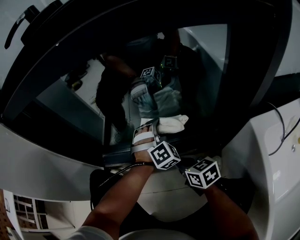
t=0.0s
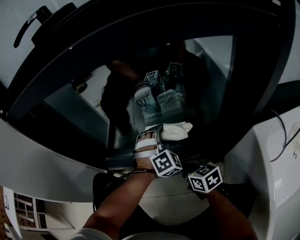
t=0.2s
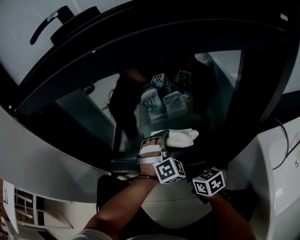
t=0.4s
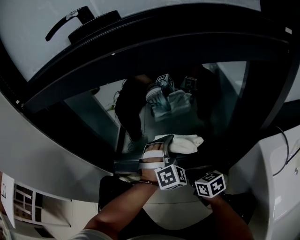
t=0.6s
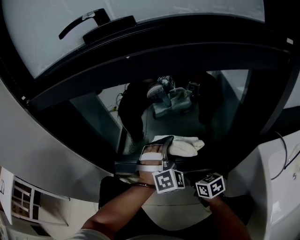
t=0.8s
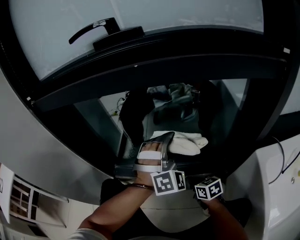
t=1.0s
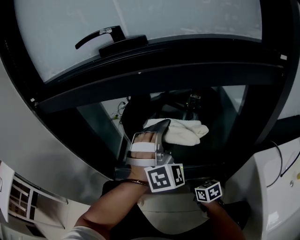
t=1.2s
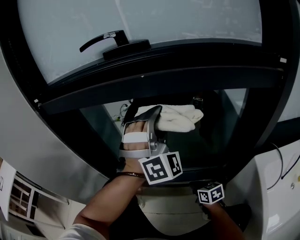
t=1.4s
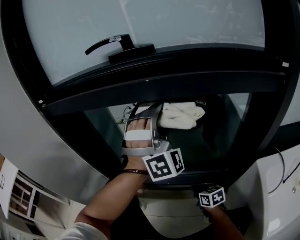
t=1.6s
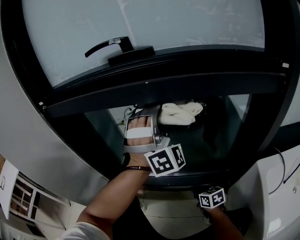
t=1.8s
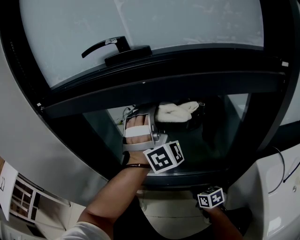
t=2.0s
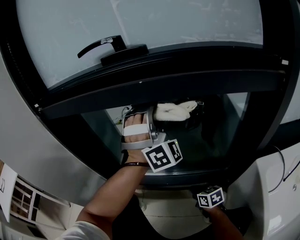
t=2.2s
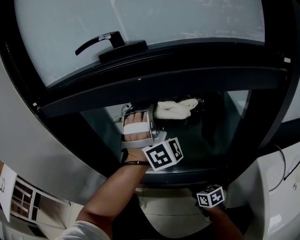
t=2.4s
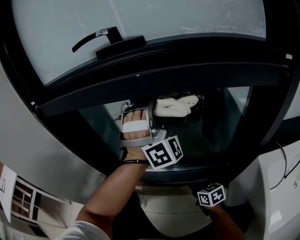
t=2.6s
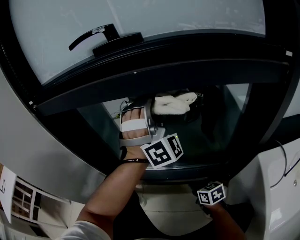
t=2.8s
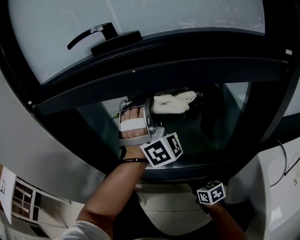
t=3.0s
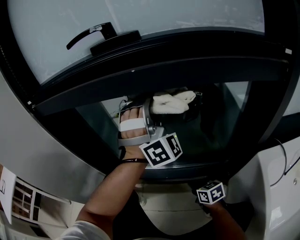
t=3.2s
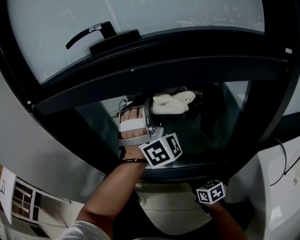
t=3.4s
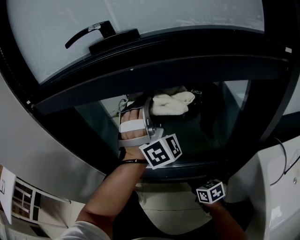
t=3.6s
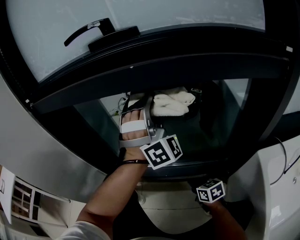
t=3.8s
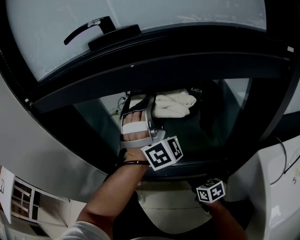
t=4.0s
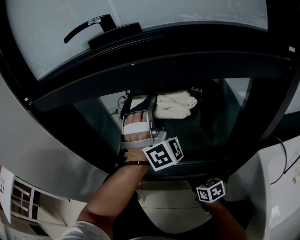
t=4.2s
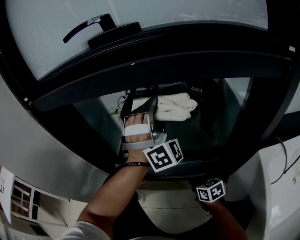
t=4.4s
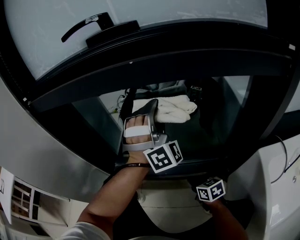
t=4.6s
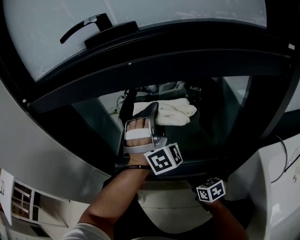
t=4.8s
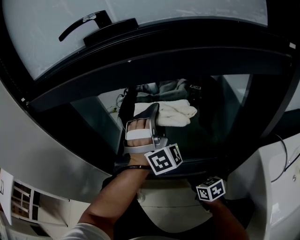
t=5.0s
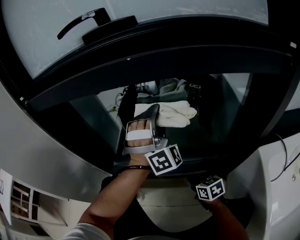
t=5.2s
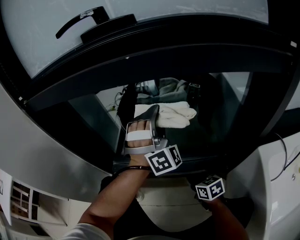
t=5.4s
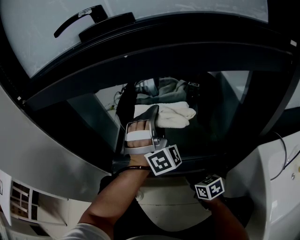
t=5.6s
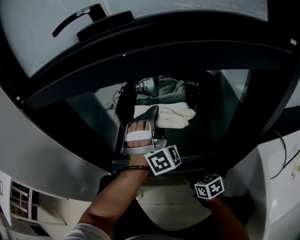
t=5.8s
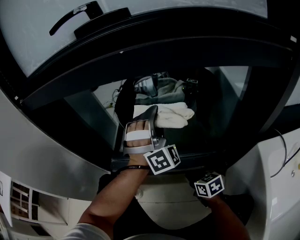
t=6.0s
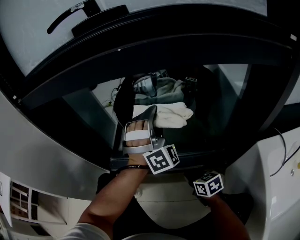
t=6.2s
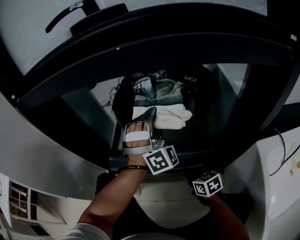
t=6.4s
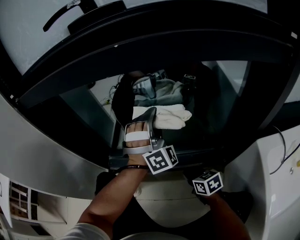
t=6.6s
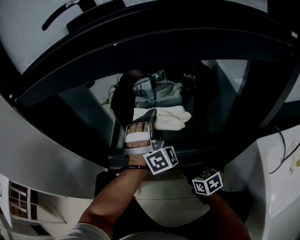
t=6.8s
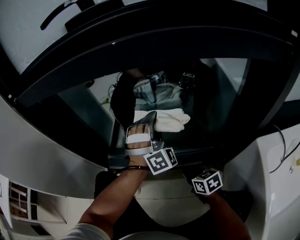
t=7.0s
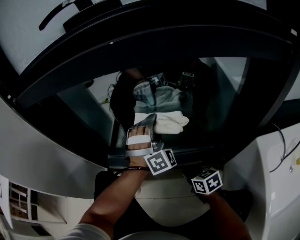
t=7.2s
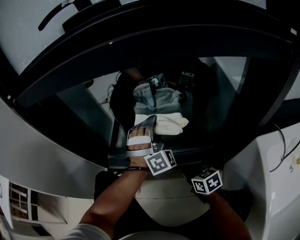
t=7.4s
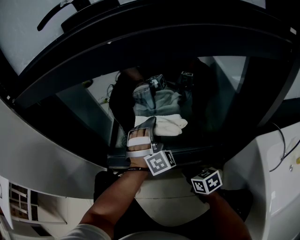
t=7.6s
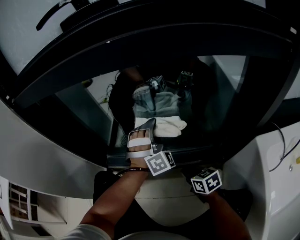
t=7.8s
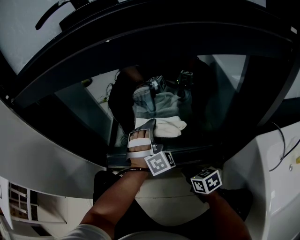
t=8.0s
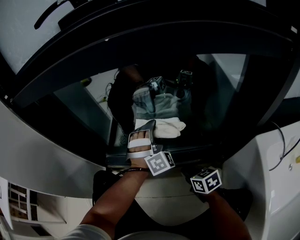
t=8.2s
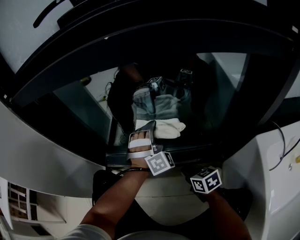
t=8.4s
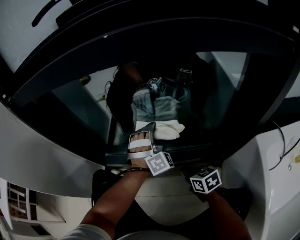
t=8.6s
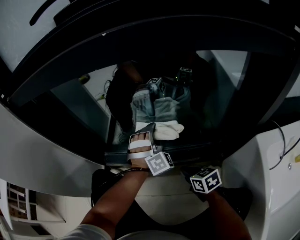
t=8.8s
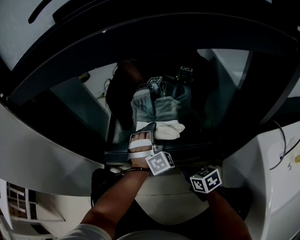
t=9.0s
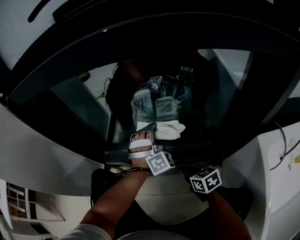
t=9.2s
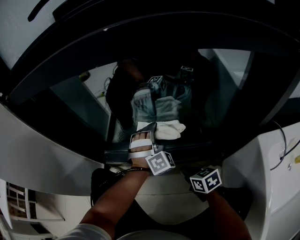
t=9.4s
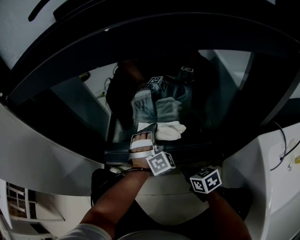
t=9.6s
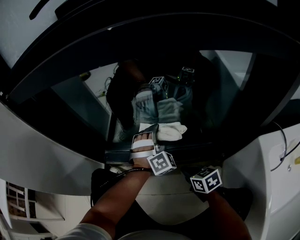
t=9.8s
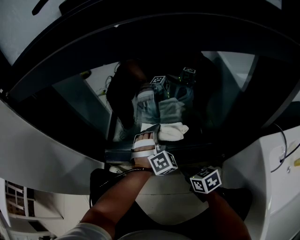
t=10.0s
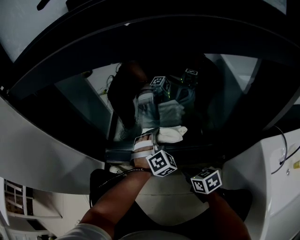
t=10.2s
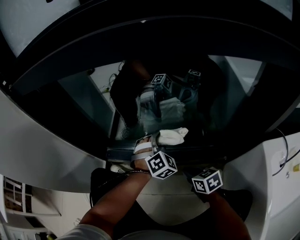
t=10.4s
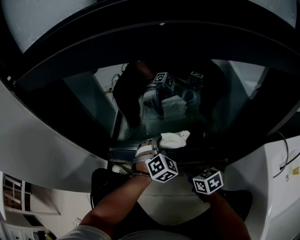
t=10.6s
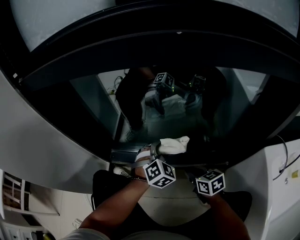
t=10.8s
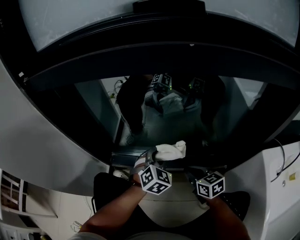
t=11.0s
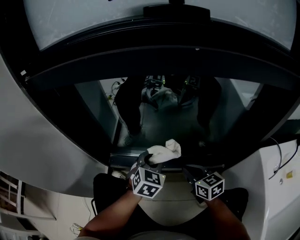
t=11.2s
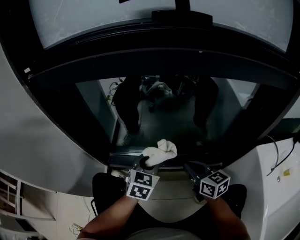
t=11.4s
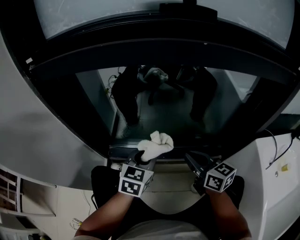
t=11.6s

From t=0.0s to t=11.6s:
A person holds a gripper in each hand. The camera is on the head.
From t=10.2s to t=11.6s: The right gripper moves upward, some 20 cm, and changes its angle by some 30 degrees.

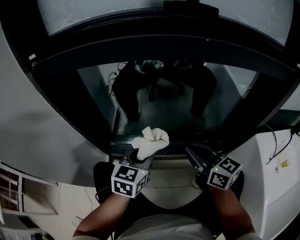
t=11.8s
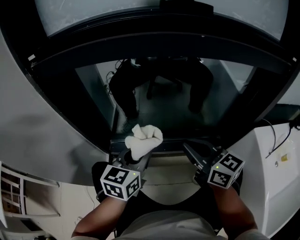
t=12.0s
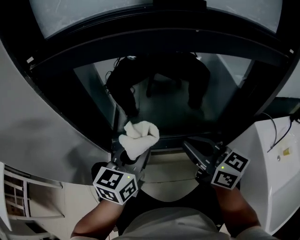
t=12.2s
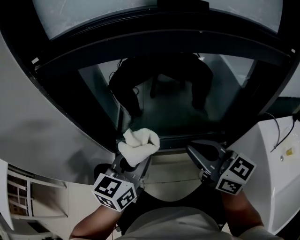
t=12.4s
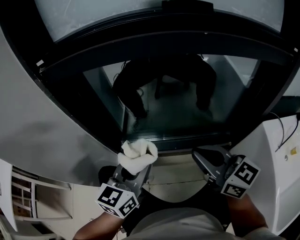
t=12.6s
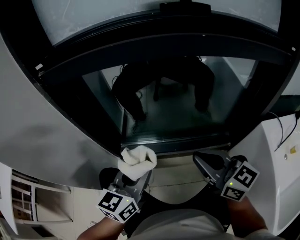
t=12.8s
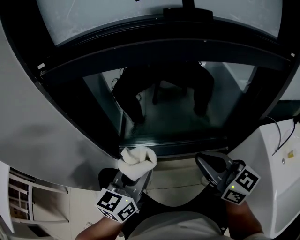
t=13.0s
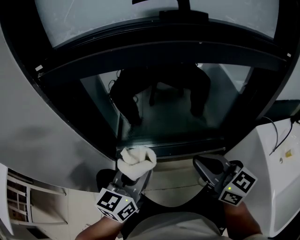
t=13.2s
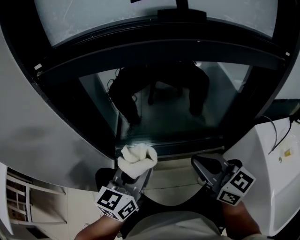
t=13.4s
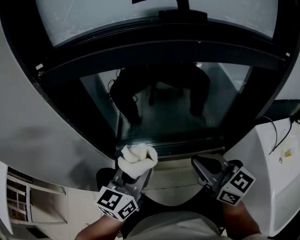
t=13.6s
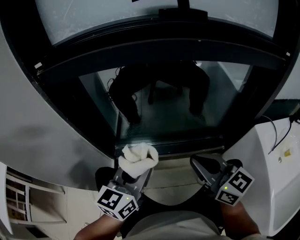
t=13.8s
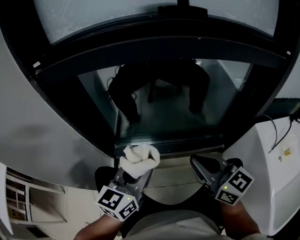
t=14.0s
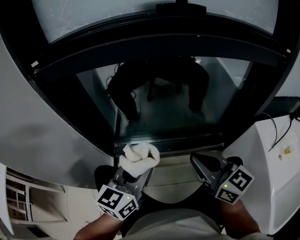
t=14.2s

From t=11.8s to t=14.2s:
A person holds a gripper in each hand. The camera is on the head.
From t=11.8s to t=13.0s: The right gripper changes place by about 10 cm.

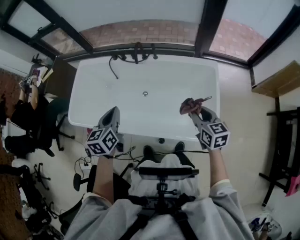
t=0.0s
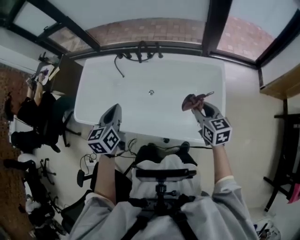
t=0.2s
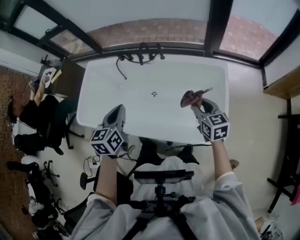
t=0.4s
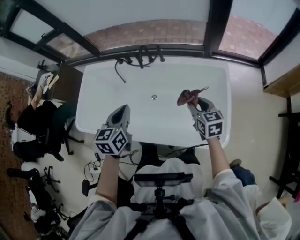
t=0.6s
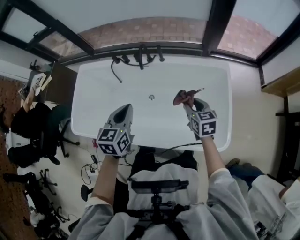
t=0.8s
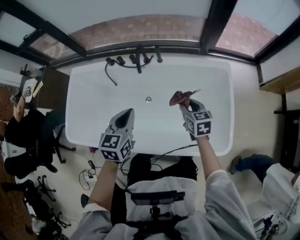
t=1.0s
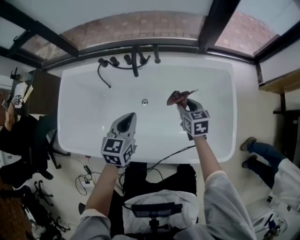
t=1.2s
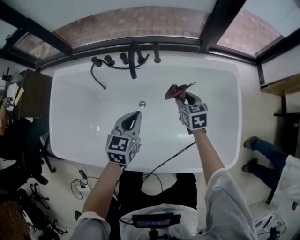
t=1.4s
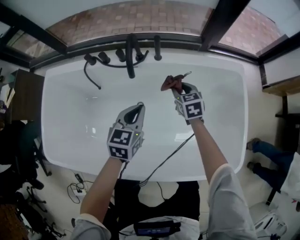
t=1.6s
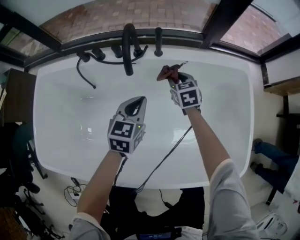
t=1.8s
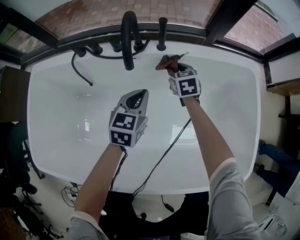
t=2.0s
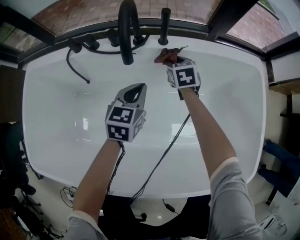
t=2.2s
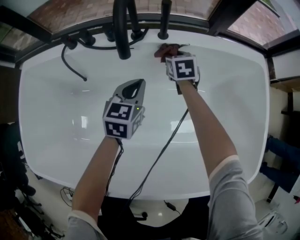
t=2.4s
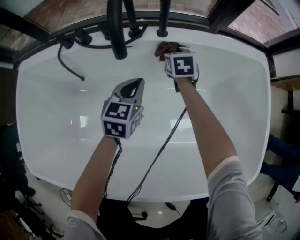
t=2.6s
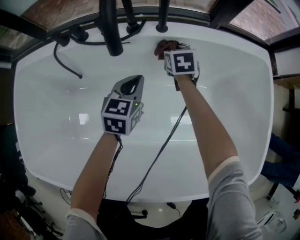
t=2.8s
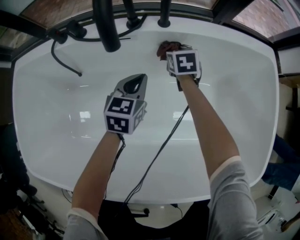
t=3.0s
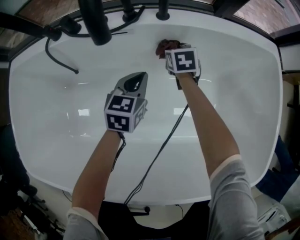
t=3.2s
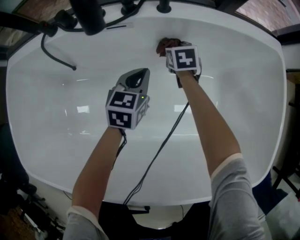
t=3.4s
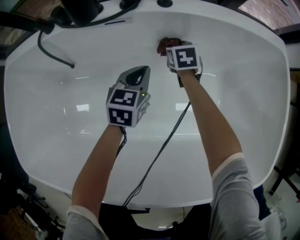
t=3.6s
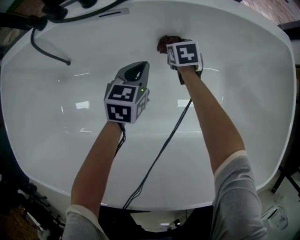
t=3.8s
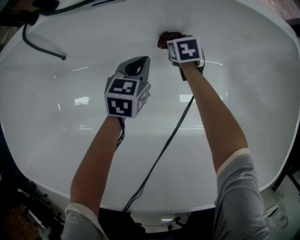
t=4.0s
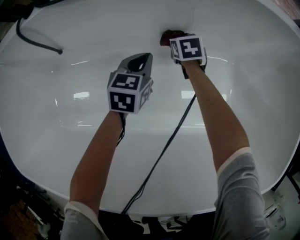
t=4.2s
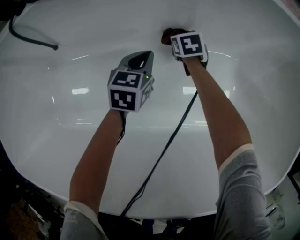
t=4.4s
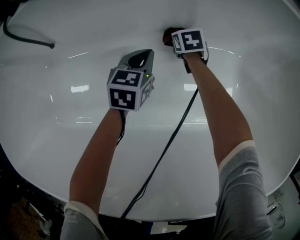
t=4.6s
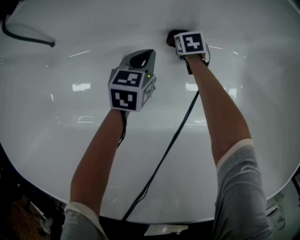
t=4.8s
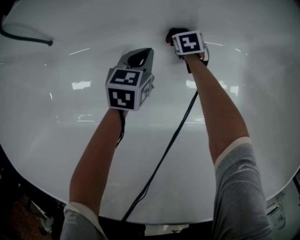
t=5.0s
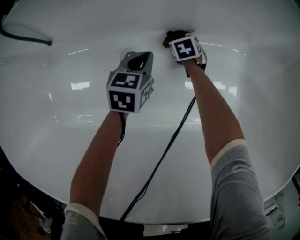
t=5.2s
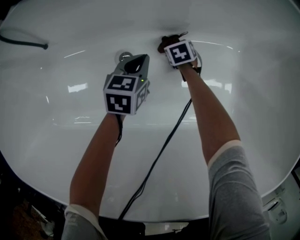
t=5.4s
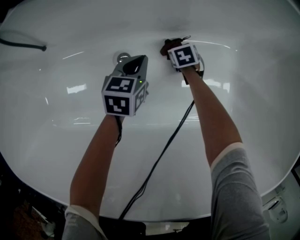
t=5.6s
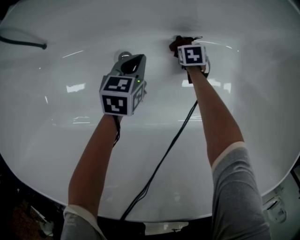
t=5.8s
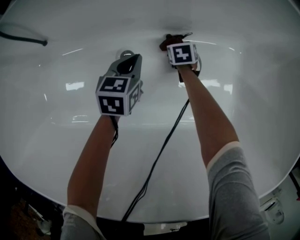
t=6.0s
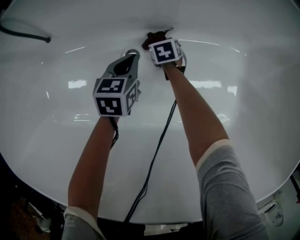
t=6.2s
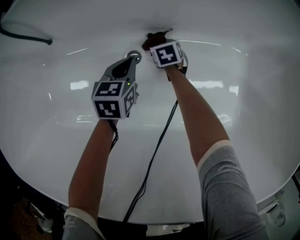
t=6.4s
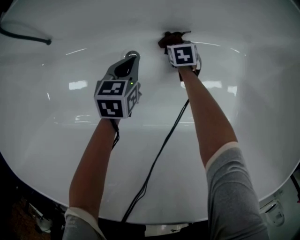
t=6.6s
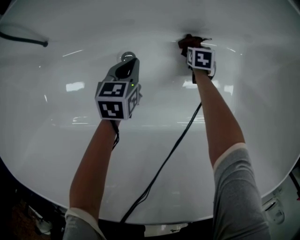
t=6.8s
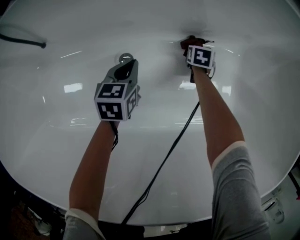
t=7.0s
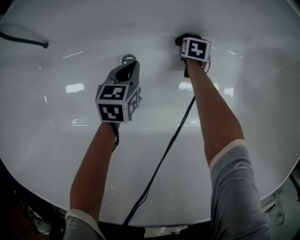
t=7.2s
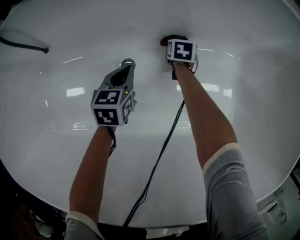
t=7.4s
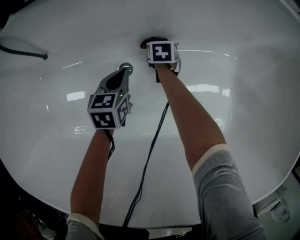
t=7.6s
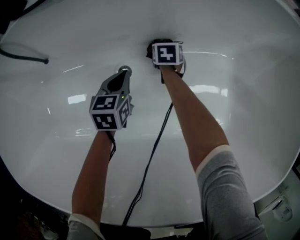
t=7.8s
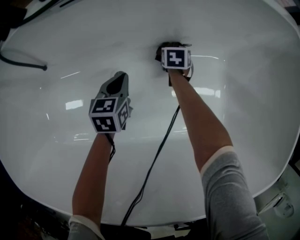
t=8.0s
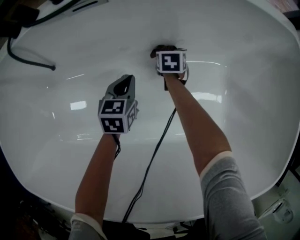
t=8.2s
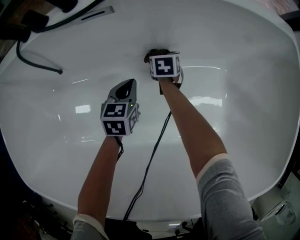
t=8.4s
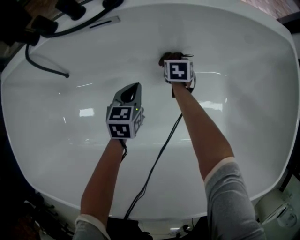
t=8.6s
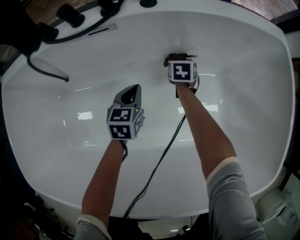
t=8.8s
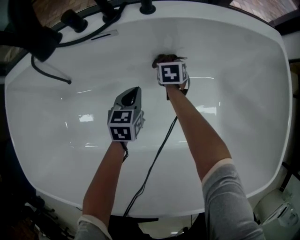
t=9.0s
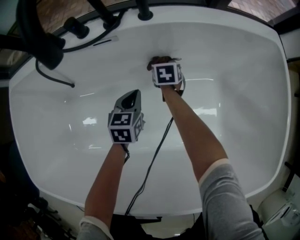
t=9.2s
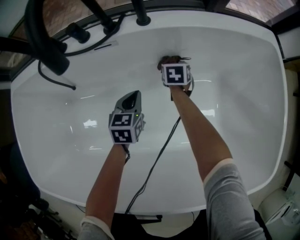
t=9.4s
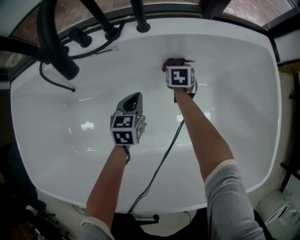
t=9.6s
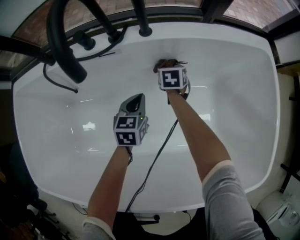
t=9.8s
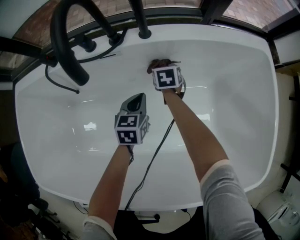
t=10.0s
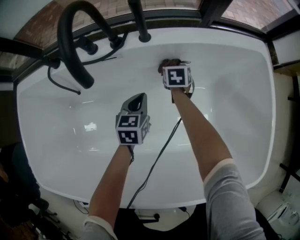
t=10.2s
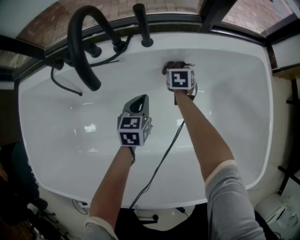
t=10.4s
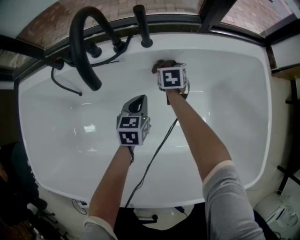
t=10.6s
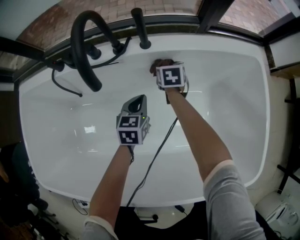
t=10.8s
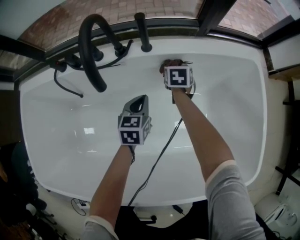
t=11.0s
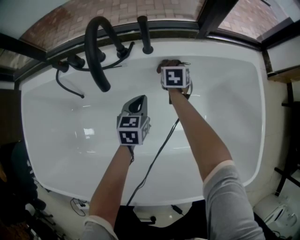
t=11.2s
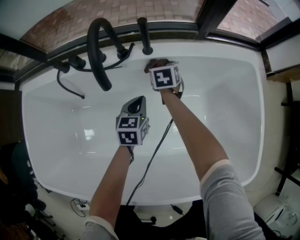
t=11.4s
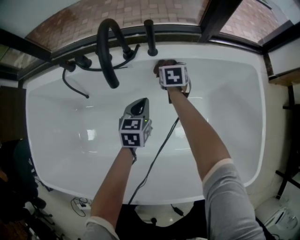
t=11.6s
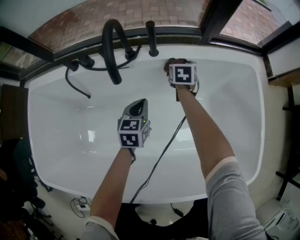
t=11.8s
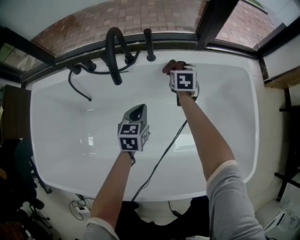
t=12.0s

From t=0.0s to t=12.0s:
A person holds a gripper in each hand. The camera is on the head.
From t=0.0s to t=1.6s: The right gripper travels forward and downward by approximately 50 cm. Meanwhile the left gripper moves downward and forward, about 40 cm, and rotates about 30 degrees.
From t=1.6s to t=3.0s: Both grippers travel together downward and forward, roughly 25 cm.
From t=3.0s to t=4.4s: Both grippers move downward, approximately 20 cm.
From t=4.4s to t=6.0s: The right gripper is displaced downward and backward by roughly 15 cm; the left gripper shifts by some 5 cm.
From t=6.0s to t=7.6s: The right gripper moves left and right over roughly 20 cm, changing direction 2 times.
From t=7.6s to t=9.0s: Both grippers move upward, about 15 cm.
From t=9.0s to t=10.4s: The right gripper goes approximately 15 cm upward and to the right, while the left gripper travels upward by approximately 10 cm.
From t=10.4s to t=12.0s: The right gripper is displaced upward by roughly 15 cm, while the left gripper heads upward, covering roughly 10 cm.
